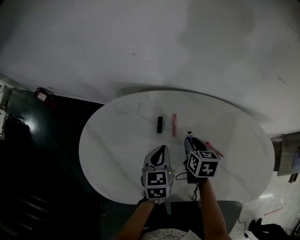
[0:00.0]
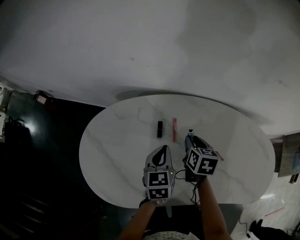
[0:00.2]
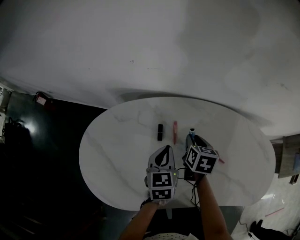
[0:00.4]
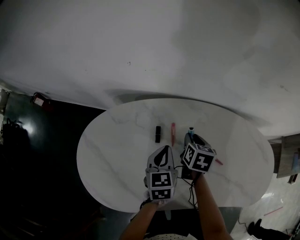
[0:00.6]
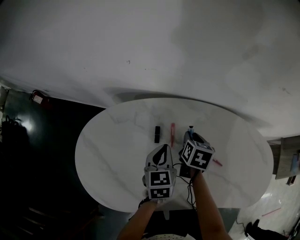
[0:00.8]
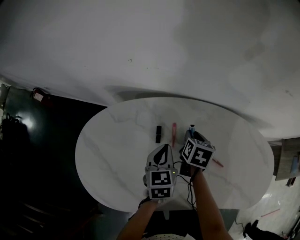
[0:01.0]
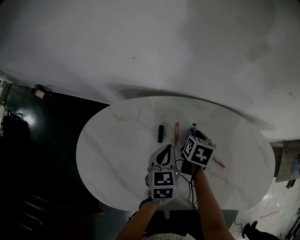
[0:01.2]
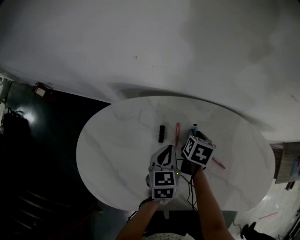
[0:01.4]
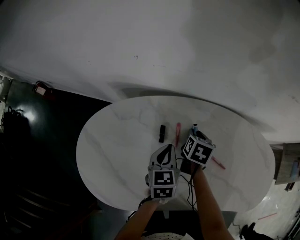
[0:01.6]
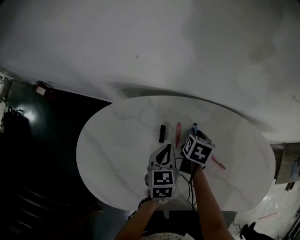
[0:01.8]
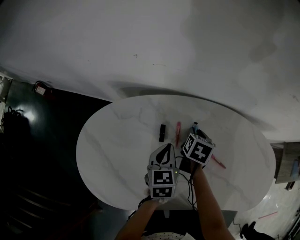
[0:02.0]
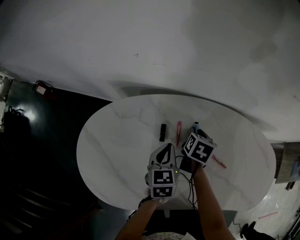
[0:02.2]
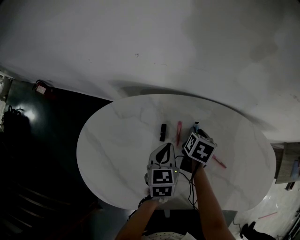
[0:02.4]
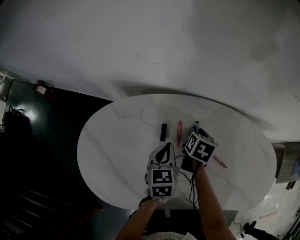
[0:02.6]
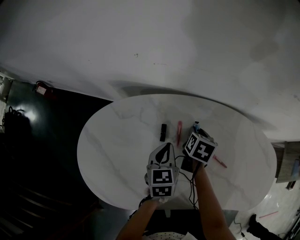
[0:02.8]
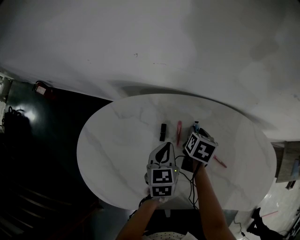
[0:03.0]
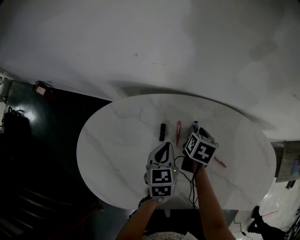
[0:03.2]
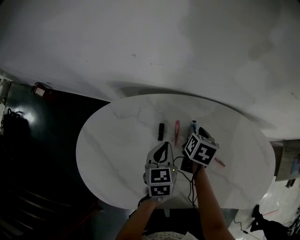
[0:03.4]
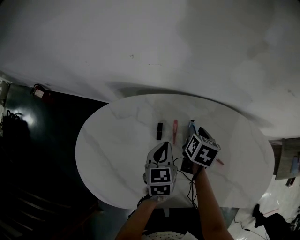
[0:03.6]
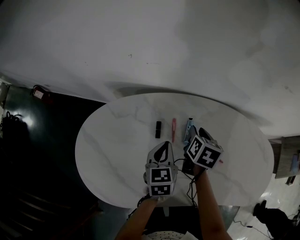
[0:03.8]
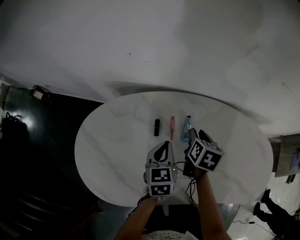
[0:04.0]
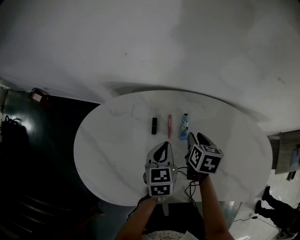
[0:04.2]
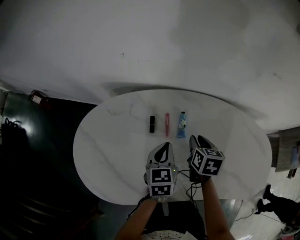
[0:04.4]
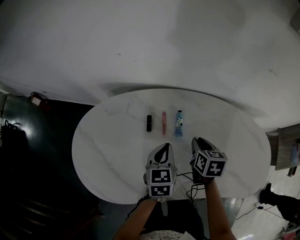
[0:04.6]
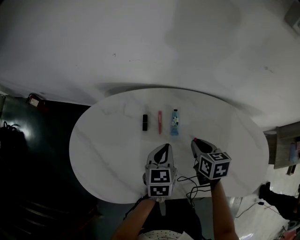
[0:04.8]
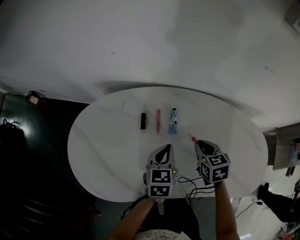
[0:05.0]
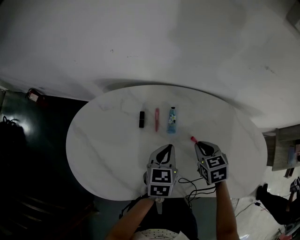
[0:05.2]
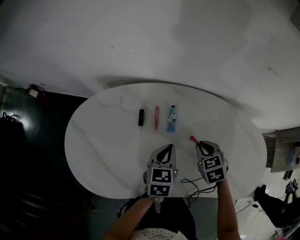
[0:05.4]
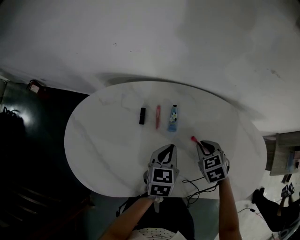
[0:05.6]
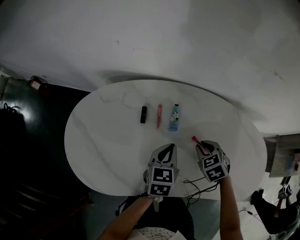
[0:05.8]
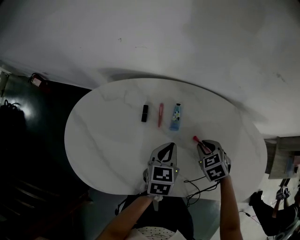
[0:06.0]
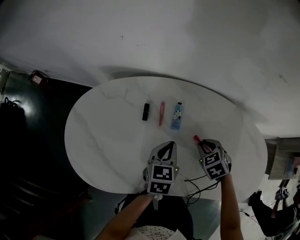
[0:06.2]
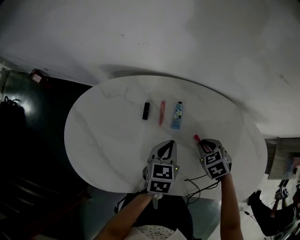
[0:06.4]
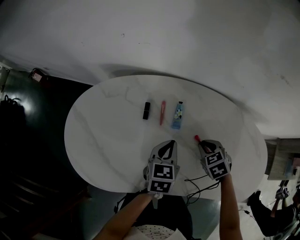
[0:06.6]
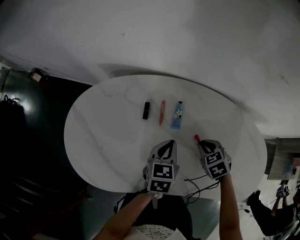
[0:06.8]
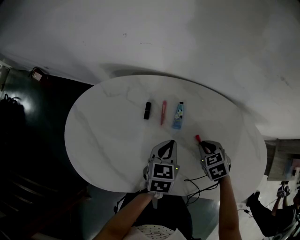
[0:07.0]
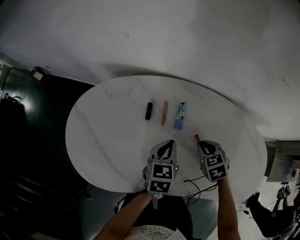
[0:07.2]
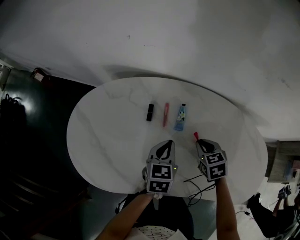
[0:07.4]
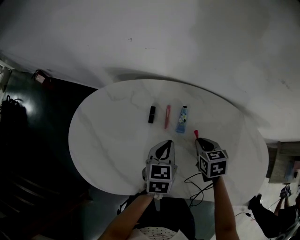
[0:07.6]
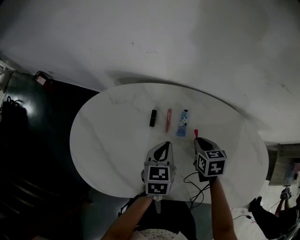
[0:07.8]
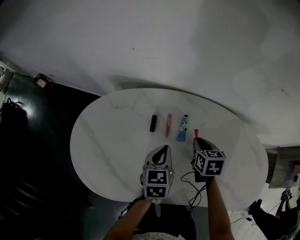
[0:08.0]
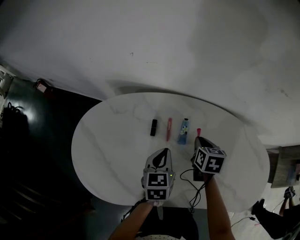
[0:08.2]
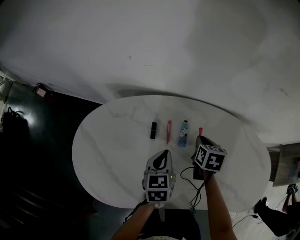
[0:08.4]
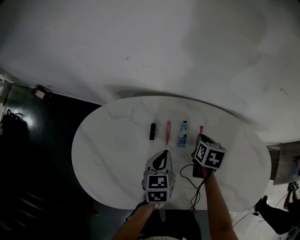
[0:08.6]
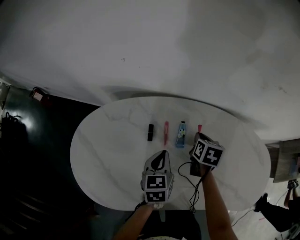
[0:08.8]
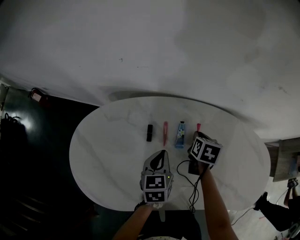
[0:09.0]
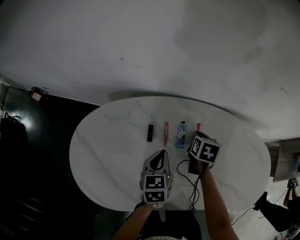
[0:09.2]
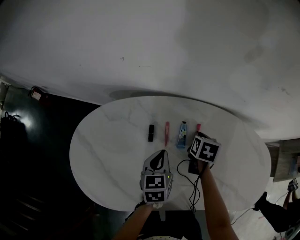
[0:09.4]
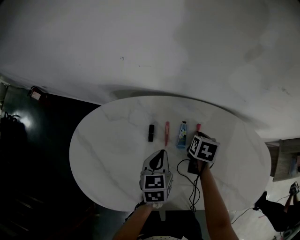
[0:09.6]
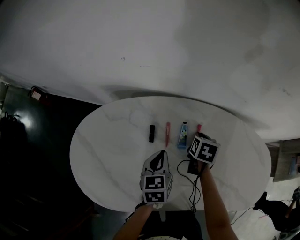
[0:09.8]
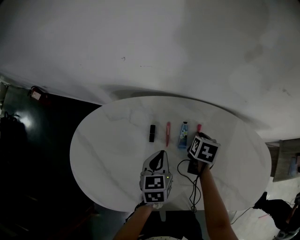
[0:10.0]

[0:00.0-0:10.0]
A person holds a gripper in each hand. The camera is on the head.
0:00.0 to 0:01.4: The right gripper moves forward, approximately 10 cm; the left gripper goes some 5 cm forward.
0:01.4 to 0:02.8: There are only small adjustments of the grippers.
0:02.8 to 0:04.2: The right gripper moves backward and upward, some 10 cm.
0:04.2 to 0:05.8: The left gripper heads to the right, covering roughly 10 cm. Meanwhile the right gripper heads to the right and backward, covering some 10 cm, and rotates around the line of its fingers by about 50 degrees, counterclockwise from behind.
0:05.8 to 0:07.2: The grippers make only small movements.
0:07.2 to 0:08.6: The right gripper goes about 10 cm forward, and swivels some 40 degrees; the left gripper ends up about 5 cm from where it was.
0:08.6 to 0:10.0: The grippers stay close to where they were, moving slightly.

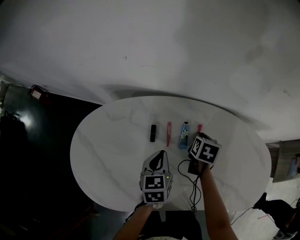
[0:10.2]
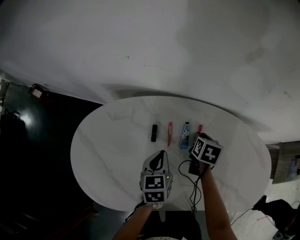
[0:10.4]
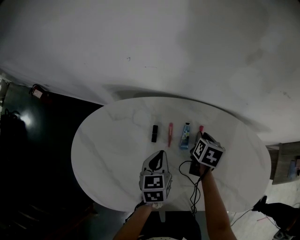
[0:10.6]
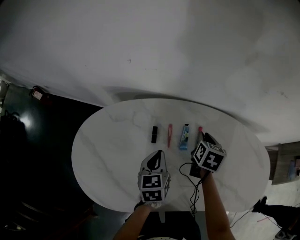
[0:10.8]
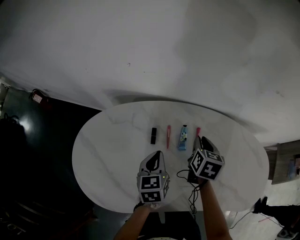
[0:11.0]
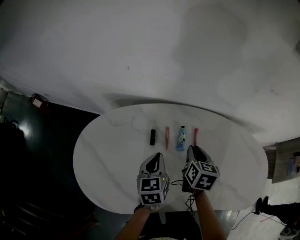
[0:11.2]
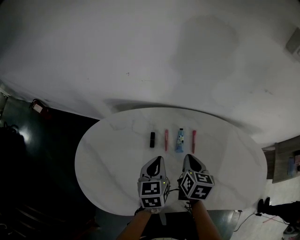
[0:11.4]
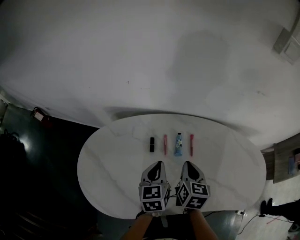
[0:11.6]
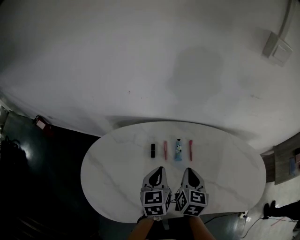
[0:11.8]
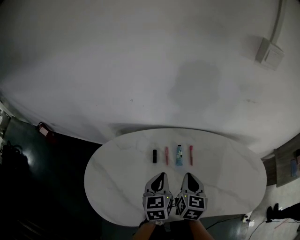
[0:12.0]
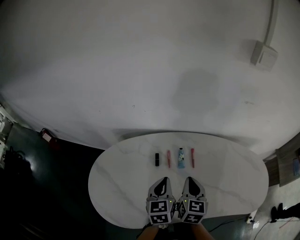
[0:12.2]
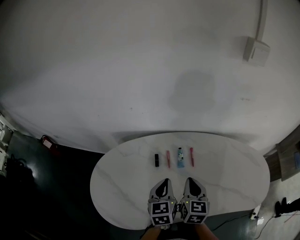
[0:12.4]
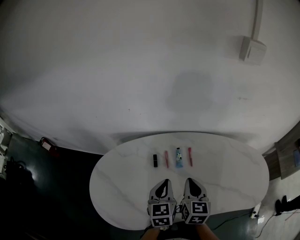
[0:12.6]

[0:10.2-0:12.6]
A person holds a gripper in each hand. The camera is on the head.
0:10.2 to 0:11.4: The left gripper moves upward, approximately 5 cm, while the right gripper goes some 15 cm upward, backward and to the left.
0:11.4 to 0:12.6: The right gripper travels backward and upward by some 10 cm; the left gripper travels upward and backward by approximately 10 cm.

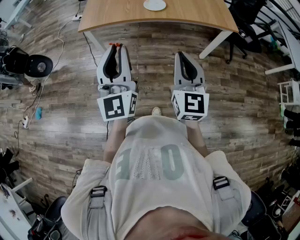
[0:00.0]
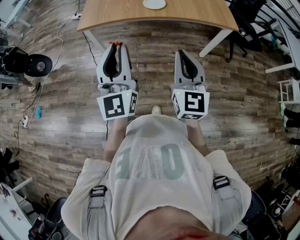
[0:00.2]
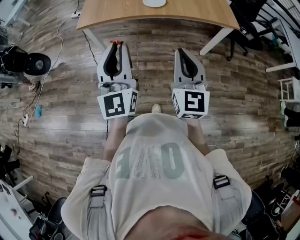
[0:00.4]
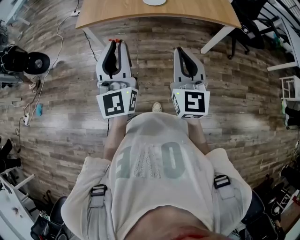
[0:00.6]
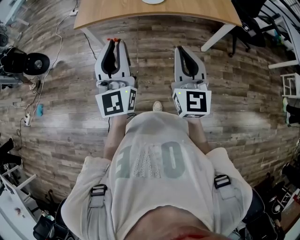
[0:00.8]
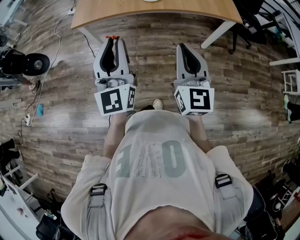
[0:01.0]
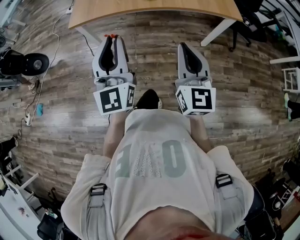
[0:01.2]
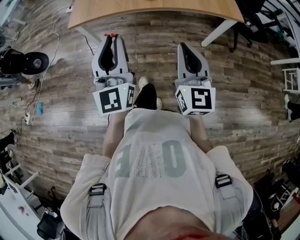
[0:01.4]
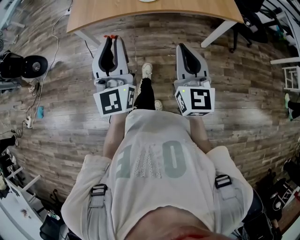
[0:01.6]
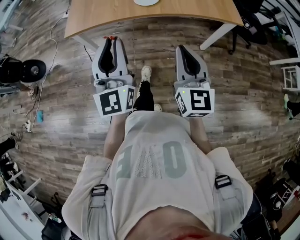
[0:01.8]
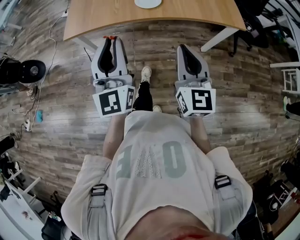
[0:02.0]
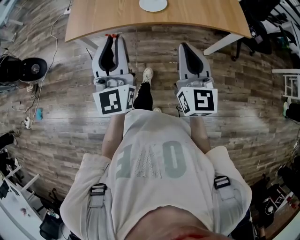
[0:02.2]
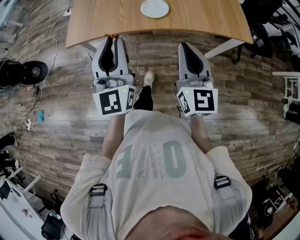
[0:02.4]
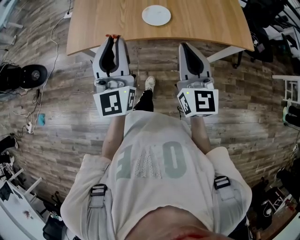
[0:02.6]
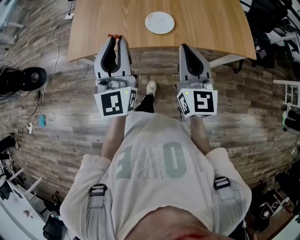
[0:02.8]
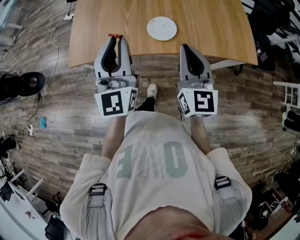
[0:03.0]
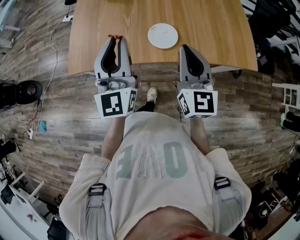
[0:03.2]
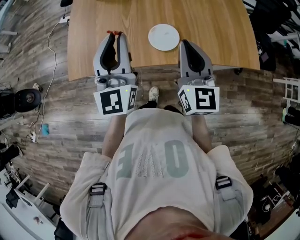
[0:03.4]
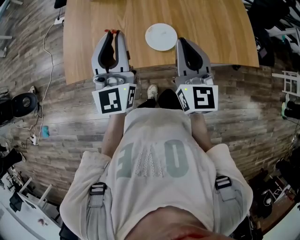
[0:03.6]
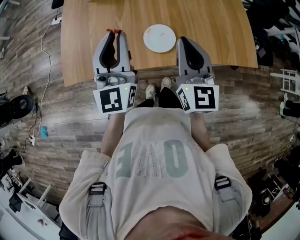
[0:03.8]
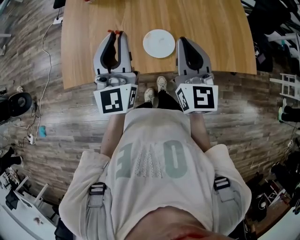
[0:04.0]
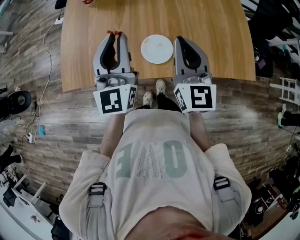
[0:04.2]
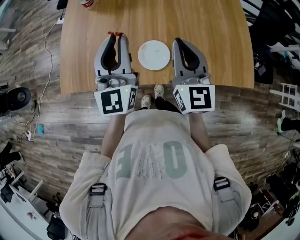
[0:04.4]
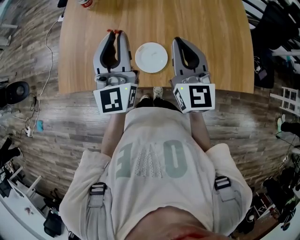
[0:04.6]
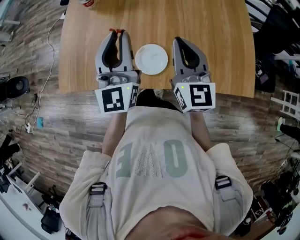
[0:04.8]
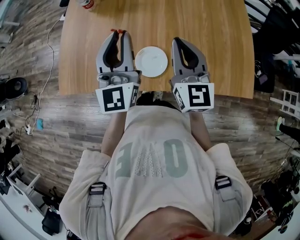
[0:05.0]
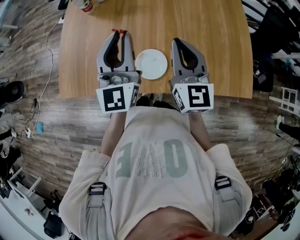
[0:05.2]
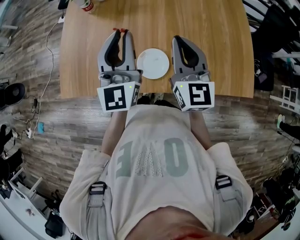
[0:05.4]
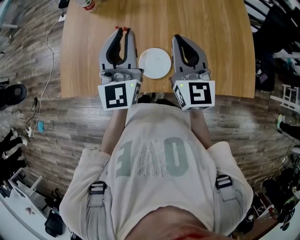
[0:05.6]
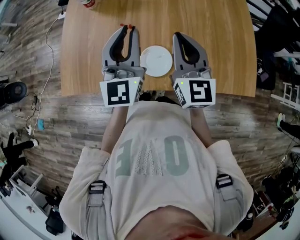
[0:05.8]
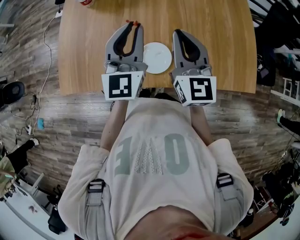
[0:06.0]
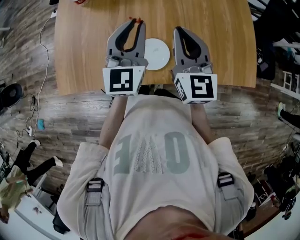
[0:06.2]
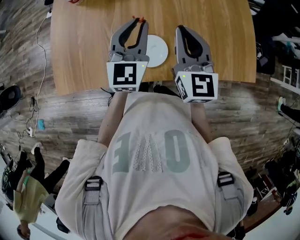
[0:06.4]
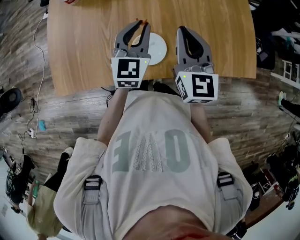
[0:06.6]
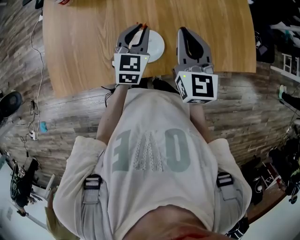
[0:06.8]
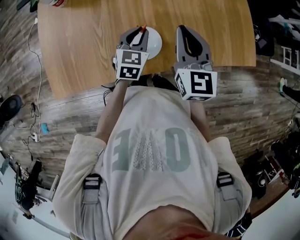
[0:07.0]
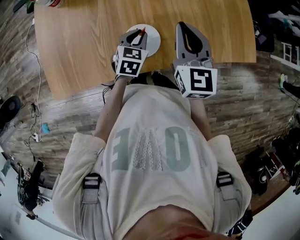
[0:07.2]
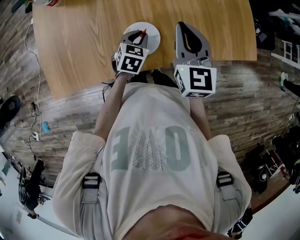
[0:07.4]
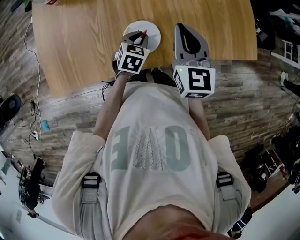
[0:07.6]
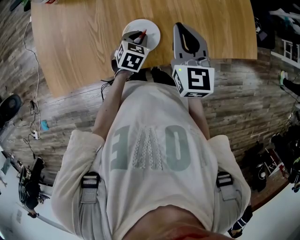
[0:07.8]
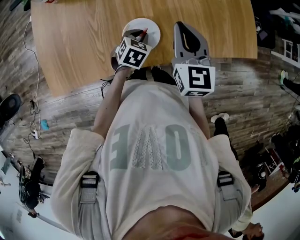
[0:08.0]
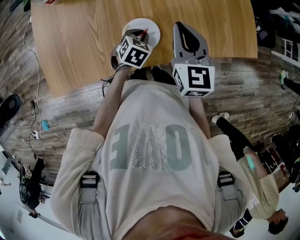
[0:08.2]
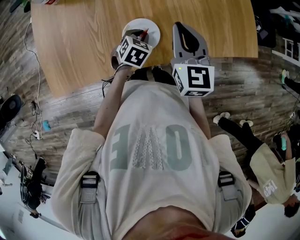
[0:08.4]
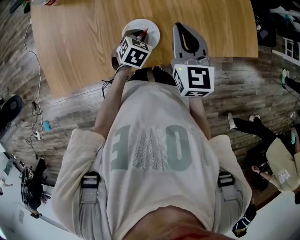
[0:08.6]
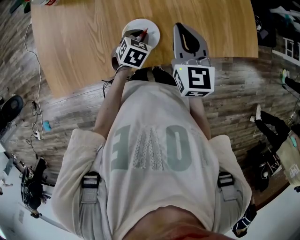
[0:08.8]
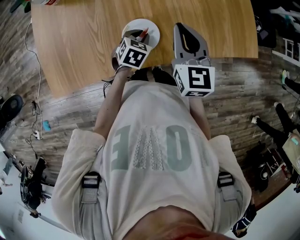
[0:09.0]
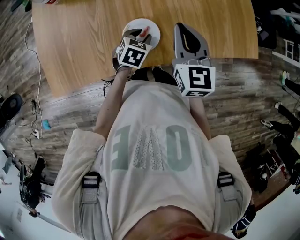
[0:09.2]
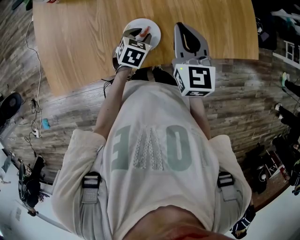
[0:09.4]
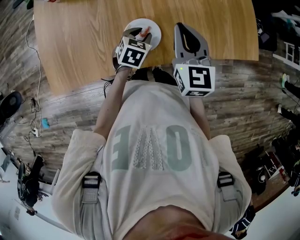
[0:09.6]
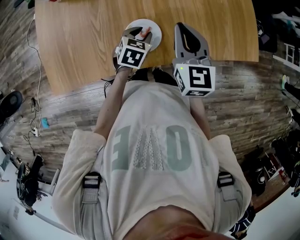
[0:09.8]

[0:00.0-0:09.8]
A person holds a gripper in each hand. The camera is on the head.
0:00.0 to 0:01.4: The left gripper travels forward by roughly 5 cm, while the right gripper shifts by roughly 5 cm.
0:01.4 to 0:02.8: The grippers both shift forward by approximately 25 cm.
0:02.8 to 0:04.2: The two grippers go about 20 cm forward.
0:04.2 to 0:05.6: The grippers both shift forward by about 5 cm.
0:05.6 to 0:07.0: The left gripper moves downward, approximately 25 cm, and angles its fingers downward, by roughly 40 degrees. The right gripper shifts approximately 10 cm downward and to the right.
0:07.0 to 0:08.4: The left gripper is displaced downward by approximately 10 cm, and changes its angle by approximately 30 degrees.
0:08.4 to 0:09.8: There are only small adjustments of the grippers.

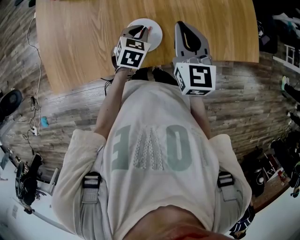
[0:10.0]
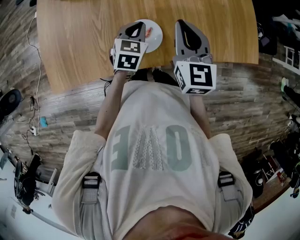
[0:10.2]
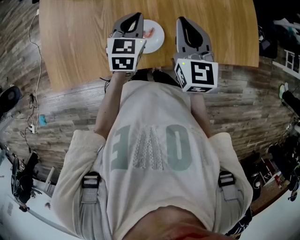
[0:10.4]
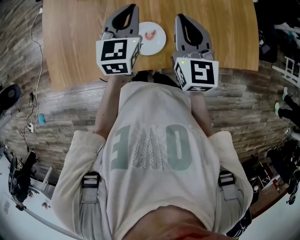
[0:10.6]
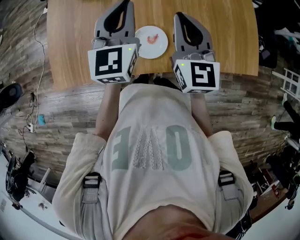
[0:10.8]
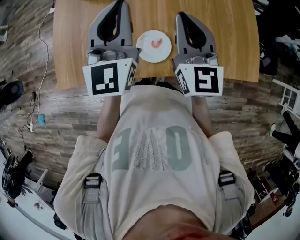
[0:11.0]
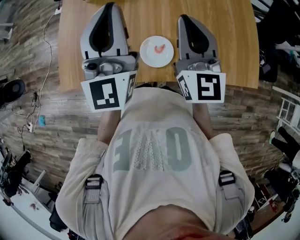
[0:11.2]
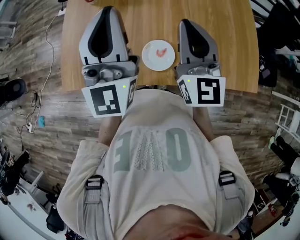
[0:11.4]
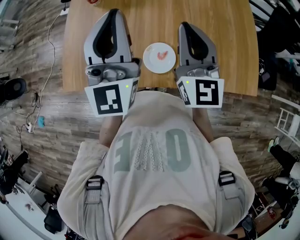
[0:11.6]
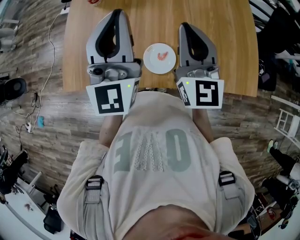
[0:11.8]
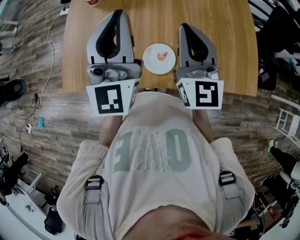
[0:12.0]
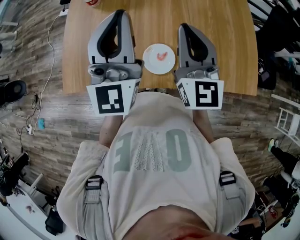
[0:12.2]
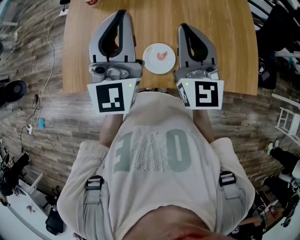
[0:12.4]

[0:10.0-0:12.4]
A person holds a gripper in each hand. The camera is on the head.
0:10.0 to 0:11.2: The left gripper shifts some 35 cm upward, and angles its fingers upward, by roughly 70 degrees; the right gripper heads upward and to the left, covering approximately 15 cm, and turns by approximately 20 degrees.
0:11.2 to 0:12.4: The grippers stay close to where they were, moving slightly.
